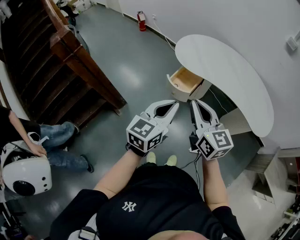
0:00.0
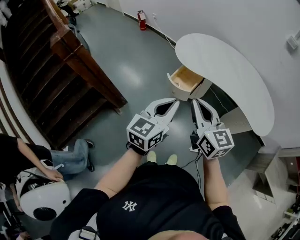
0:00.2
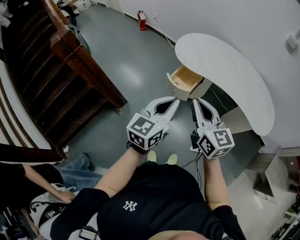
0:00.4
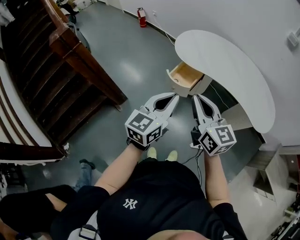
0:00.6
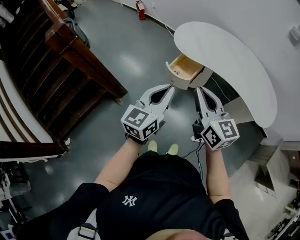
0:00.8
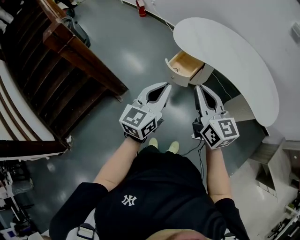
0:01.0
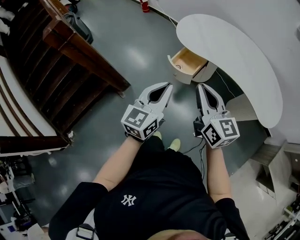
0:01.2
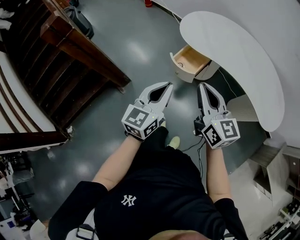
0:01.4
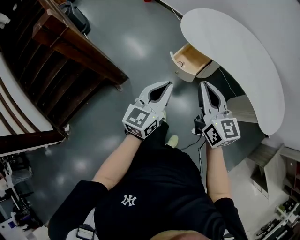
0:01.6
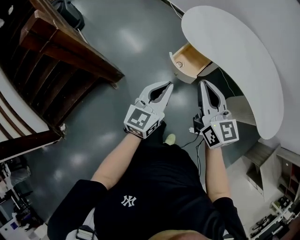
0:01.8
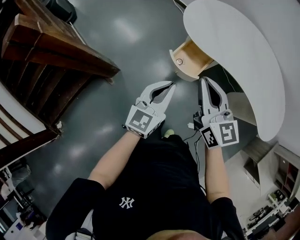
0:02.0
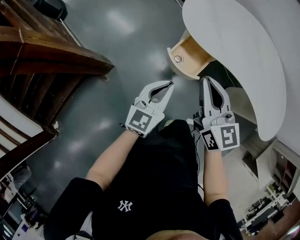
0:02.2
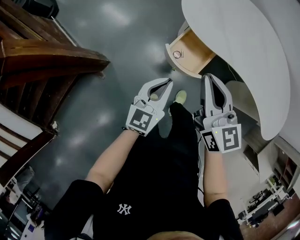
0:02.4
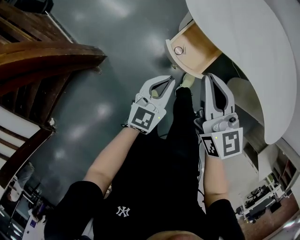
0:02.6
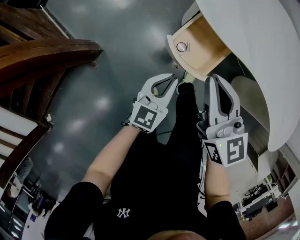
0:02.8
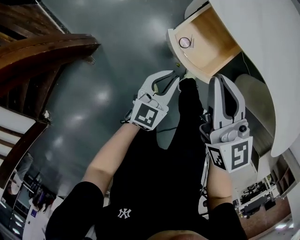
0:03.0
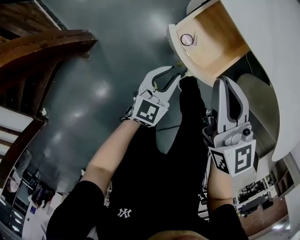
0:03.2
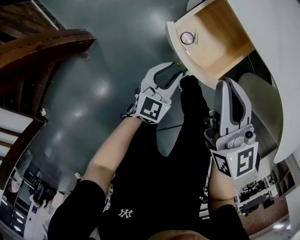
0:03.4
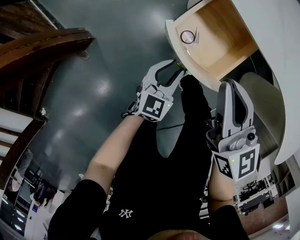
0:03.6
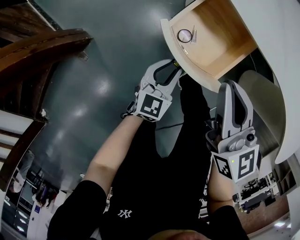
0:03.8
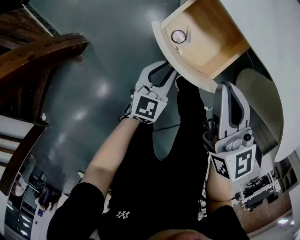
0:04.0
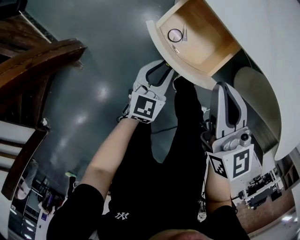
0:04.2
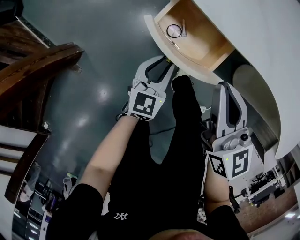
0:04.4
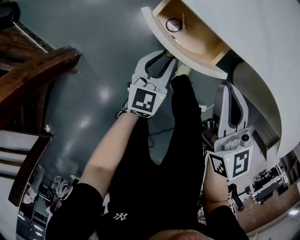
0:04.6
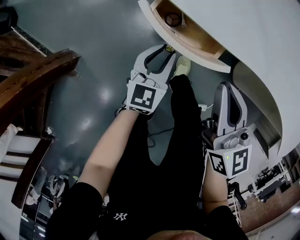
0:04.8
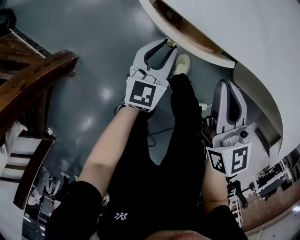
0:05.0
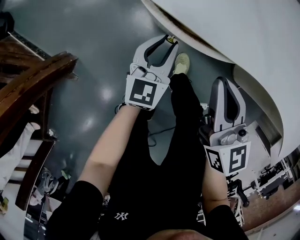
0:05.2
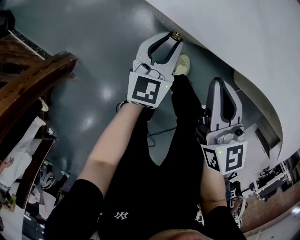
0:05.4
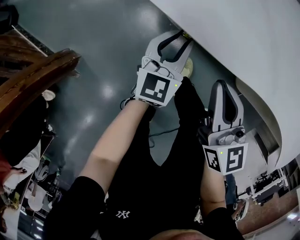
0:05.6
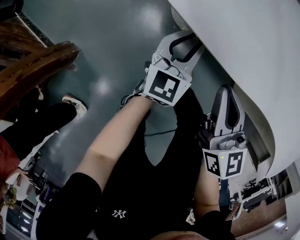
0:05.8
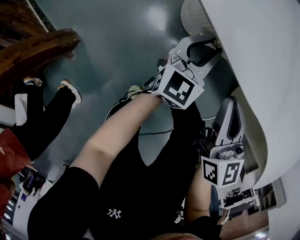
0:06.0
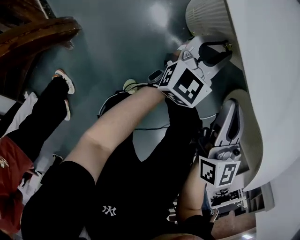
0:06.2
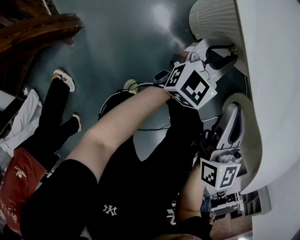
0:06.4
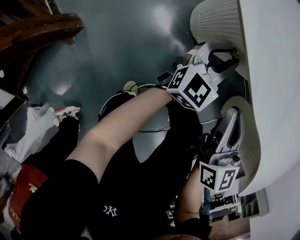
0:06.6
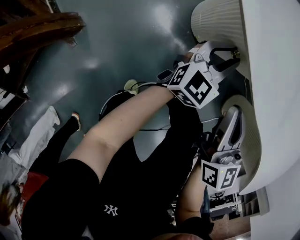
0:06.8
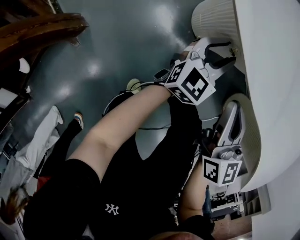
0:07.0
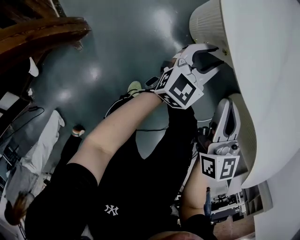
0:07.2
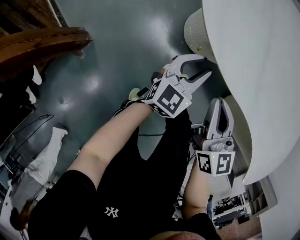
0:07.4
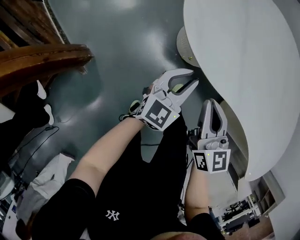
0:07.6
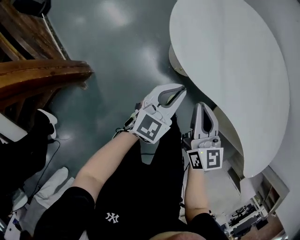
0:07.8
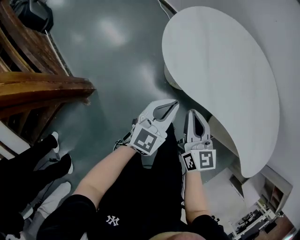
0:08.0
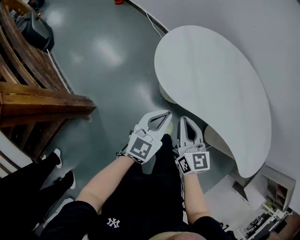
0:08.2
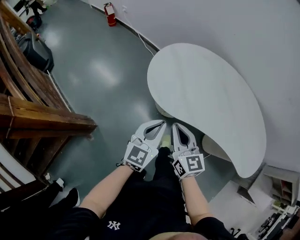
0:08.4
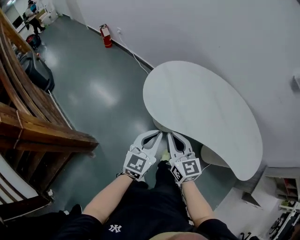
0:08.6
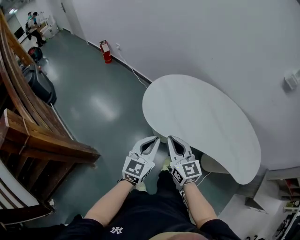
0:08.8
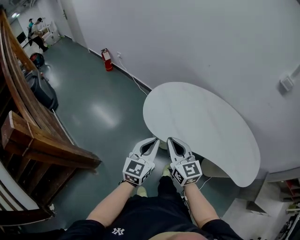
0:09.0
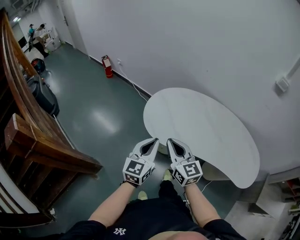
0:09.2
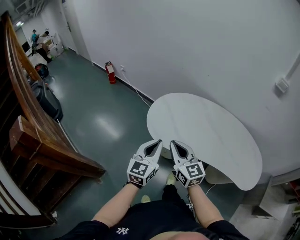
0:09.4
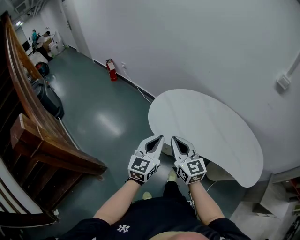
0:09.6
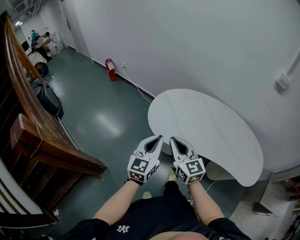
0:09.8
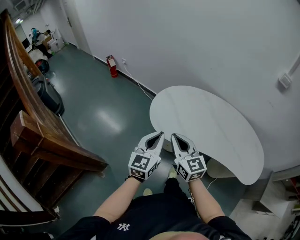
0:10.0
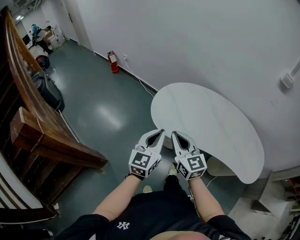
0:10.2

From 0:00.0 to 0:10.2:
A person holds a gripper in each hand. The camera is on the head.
From 0:00.0 to 0:01.4: The left gripper ends up approximately 5 cm from where it was; the right gripper shifts by about 5 cm.
From 0:01.4 to 0:03.0: The left gripper travels downward and forward by about 50 cm. The right gripper travels forward and downward by approximately 40 cm.
From 0:03.0 to 0:04.4: The right gripper shifts about 10 cm to the right and downward; the left gripper travels downward and forward by about 10 cm.
From 0:04.4 to 0:05.8: The right gripper moves downward, forward and to the right, roughly 10 cm, while the left gripper heads forward and to the right, covering about 15 cm.
From 0:05.8 to 0:07.2: There are only small adjustments of the grippers.
From 0:07.2 to 0:08.8: Both grippers move upward, some 40 cm. The left gripper closes.
From 0:08.8 to 0:10.2: Both grippers travel together upward, approximately 5 cm.

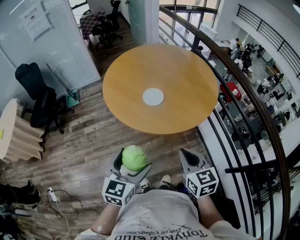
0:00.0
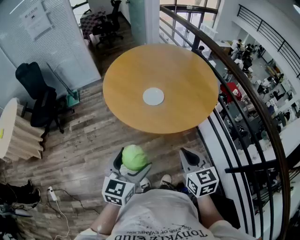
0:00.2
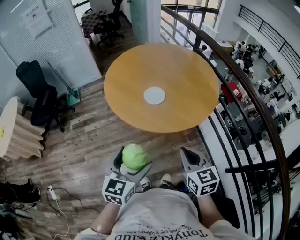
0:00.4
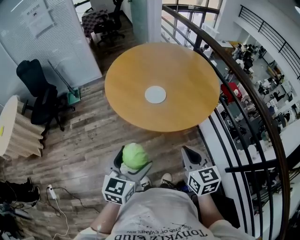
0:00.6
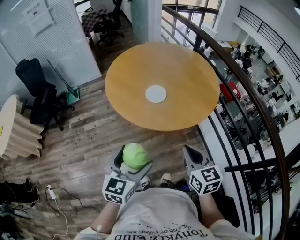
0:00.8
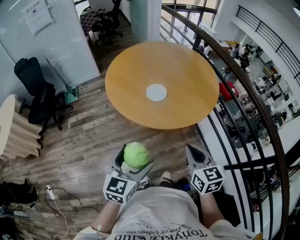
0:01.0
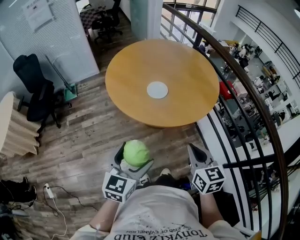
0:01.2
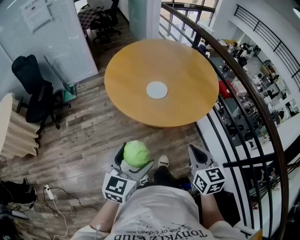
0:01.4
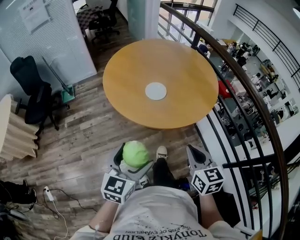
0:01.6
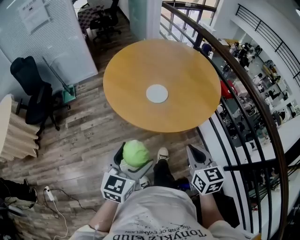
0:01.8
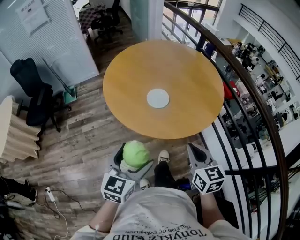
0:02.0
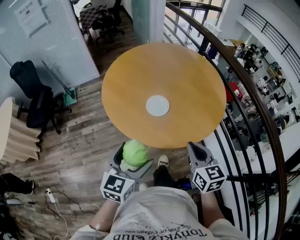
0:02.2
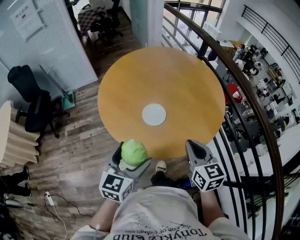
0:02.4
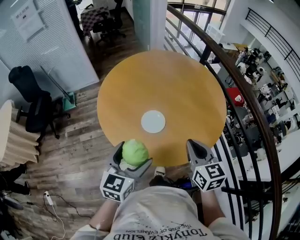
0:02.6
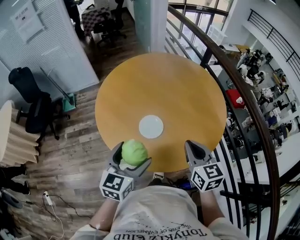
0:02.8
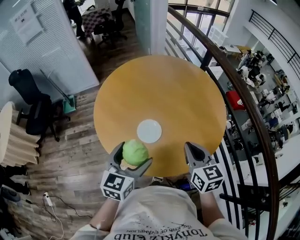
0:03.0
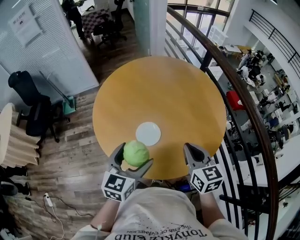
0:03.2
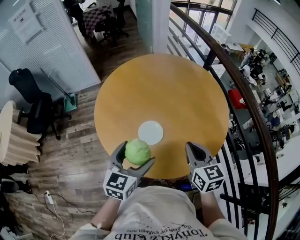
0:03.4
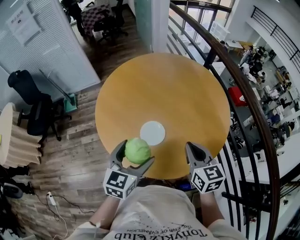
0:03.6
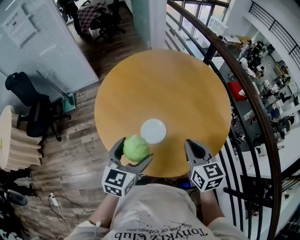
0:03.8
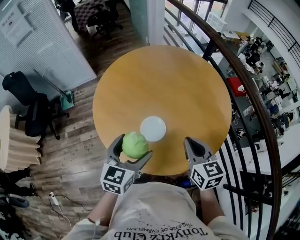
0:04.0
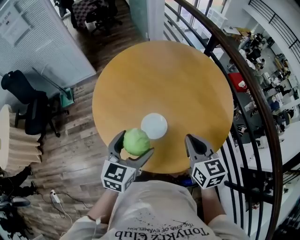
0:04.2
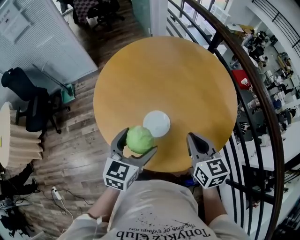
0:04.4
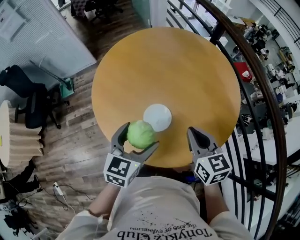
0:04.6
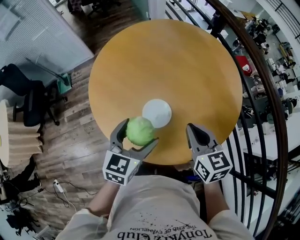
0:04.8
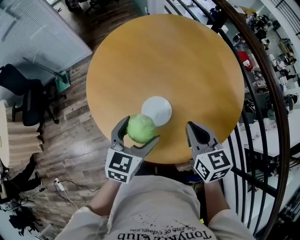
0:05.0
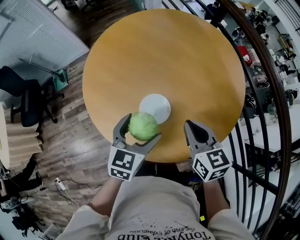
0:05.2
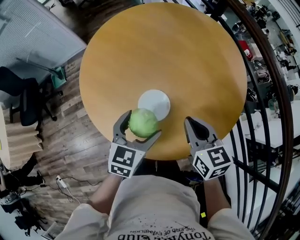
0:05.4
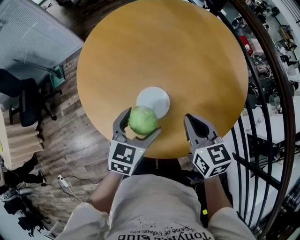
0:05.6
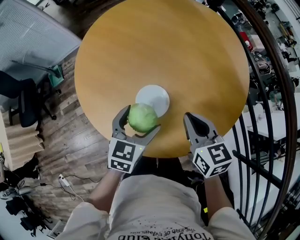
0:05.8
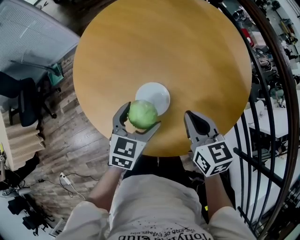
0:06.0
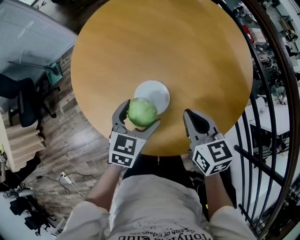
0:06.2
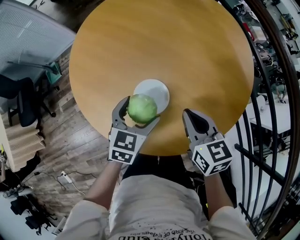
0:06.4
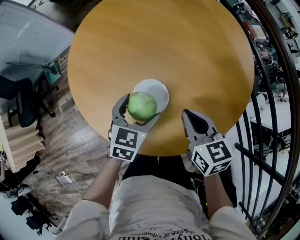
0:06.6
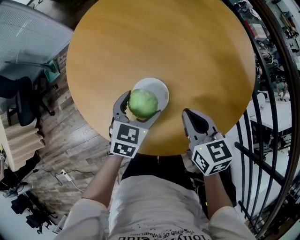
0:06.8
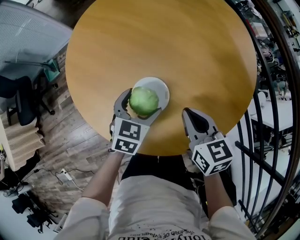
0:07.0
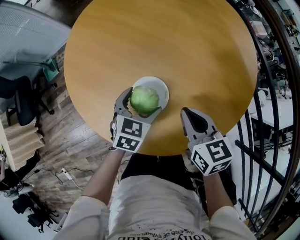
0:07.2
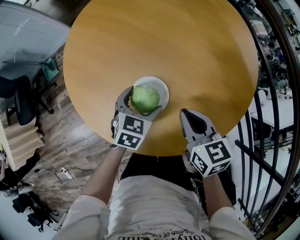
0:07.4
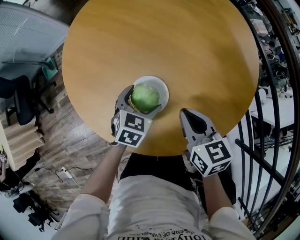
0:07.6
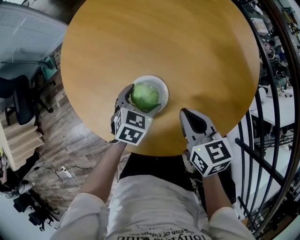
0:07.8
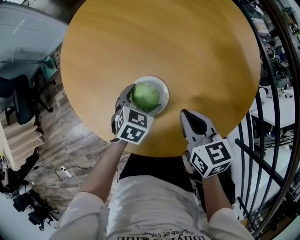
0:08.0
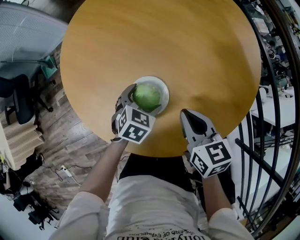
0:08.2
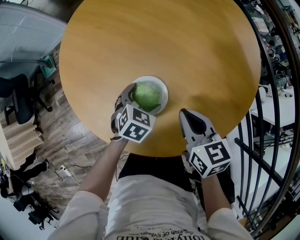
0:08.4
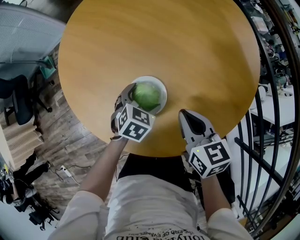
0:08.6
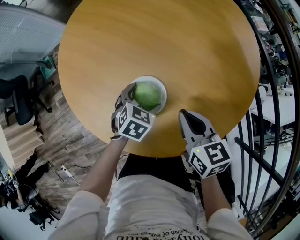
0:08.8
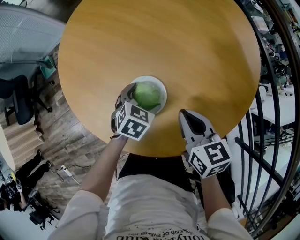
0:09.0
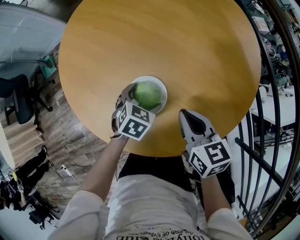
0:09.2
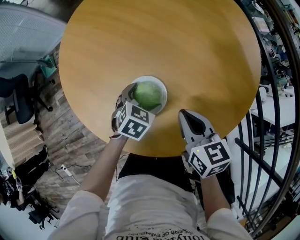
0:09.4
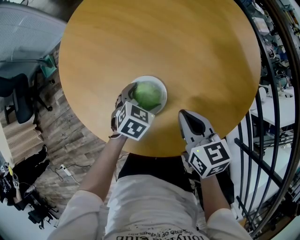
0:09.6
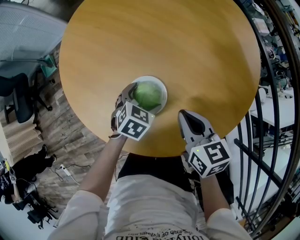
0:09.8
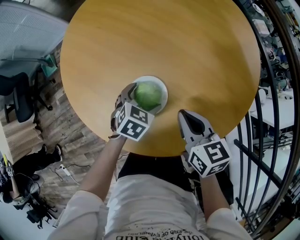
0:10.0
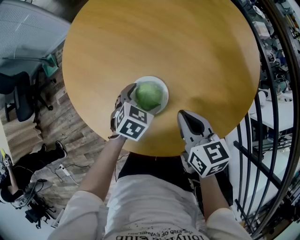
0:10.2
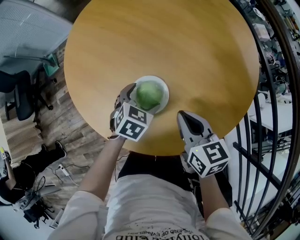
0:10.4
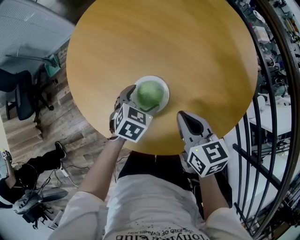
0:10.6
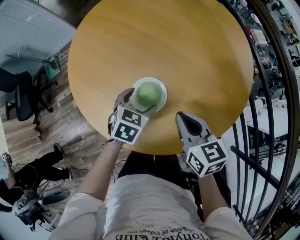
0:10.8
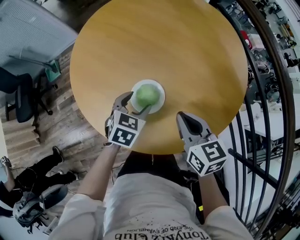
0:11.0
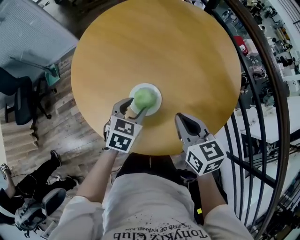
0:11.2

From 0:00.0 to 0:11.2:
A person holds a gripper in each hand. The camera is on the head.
From 0:00.0 to 0:01.6: The grippers stay close to where they were, moving slightly.
From 0:01.6 to 0:03.2: The two grippers go about 30 cm forward.
From 0:03.2 to 0:04.8: The right gripper heads to the left, covering some 5 cm; the left gripper heads forward and downward, covering approximately 10 cm.
From 0:04.8 to 0:06.4: The left gripper is displaced downward and forward by approximately 15 cm; the right gripper shifts approximately 10 cm downward.
From 0:06.4 to 0:08.0: The left gripper goes approximately 10 cm downward.
From 0:08.0 to 0:09.6: The grippers make only small movements.
From 0:09.6 to 0:11.2: The left gripper travels upward by some 10 cm, and closes its fingers. The right gripper goes roughly 5 cm upward.

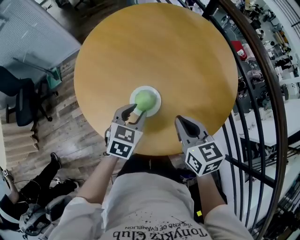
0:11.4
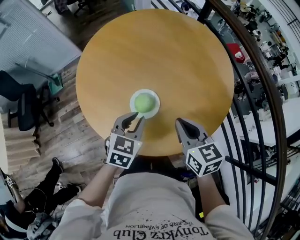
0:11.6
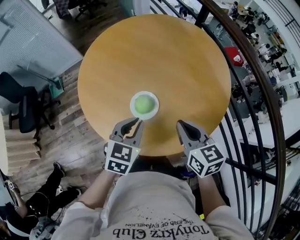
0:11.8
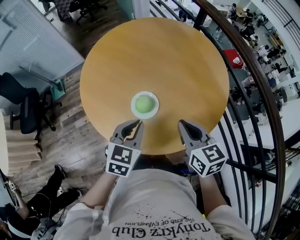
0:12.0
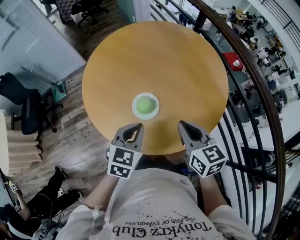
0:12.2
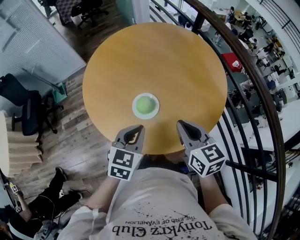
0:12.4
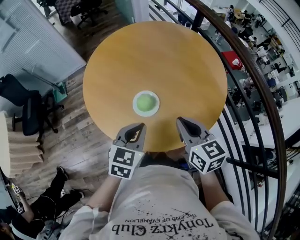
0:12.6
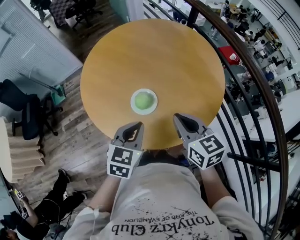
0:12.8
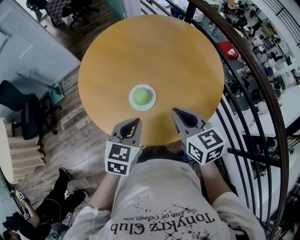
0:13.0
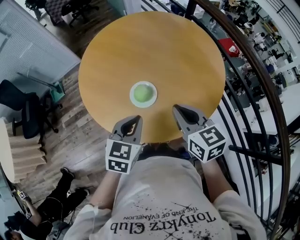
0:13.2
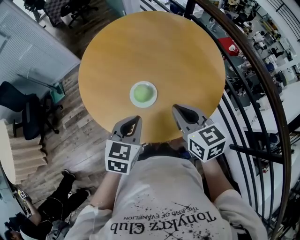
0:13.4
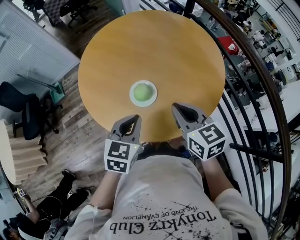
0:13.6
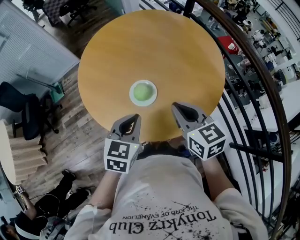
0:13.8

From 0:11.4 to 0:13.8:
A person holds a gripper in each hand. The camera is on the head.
From 0:11.4 to 0:12.6: The right gripper goes some 10 cm upward, while the left gripper travels upward and backward by roughly 15 cm.
From 0:12.6 to 0:13.8: There are only small adjustments of the grippers.
